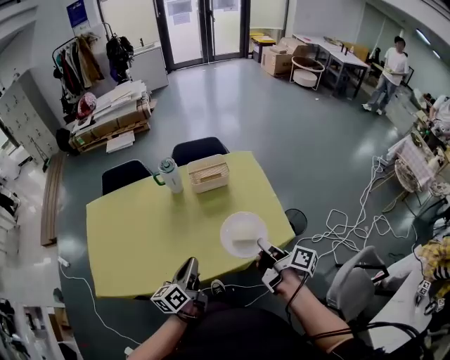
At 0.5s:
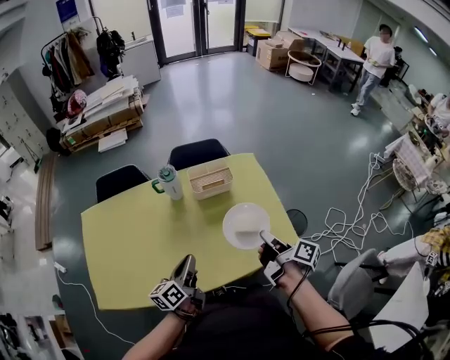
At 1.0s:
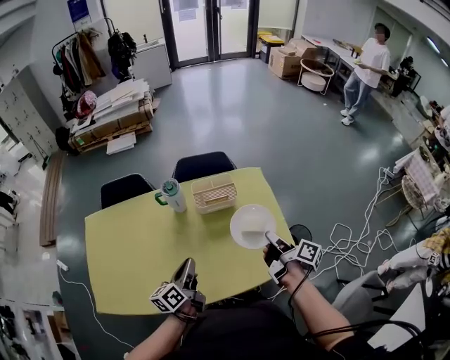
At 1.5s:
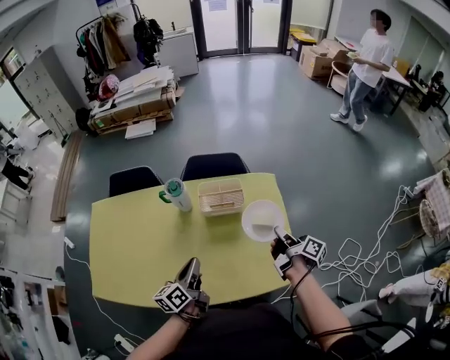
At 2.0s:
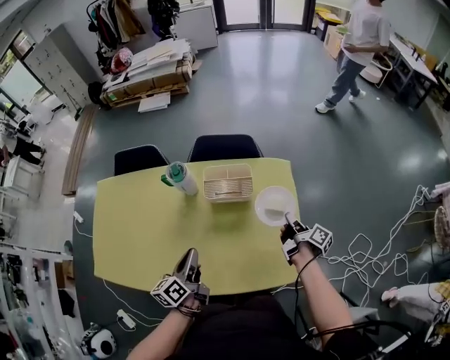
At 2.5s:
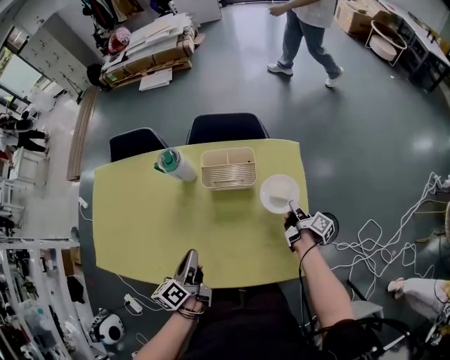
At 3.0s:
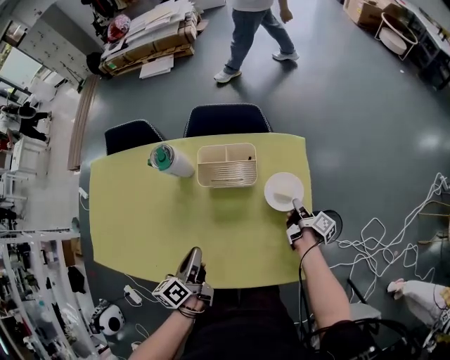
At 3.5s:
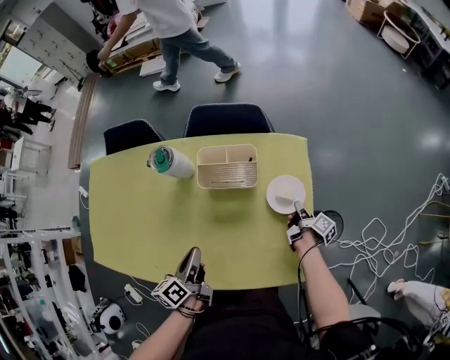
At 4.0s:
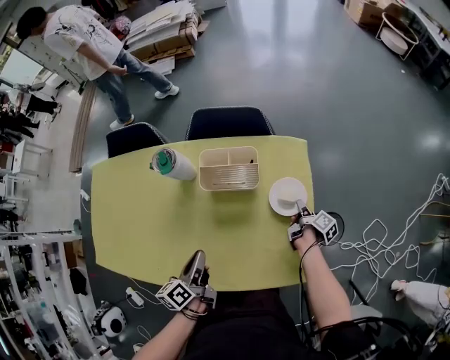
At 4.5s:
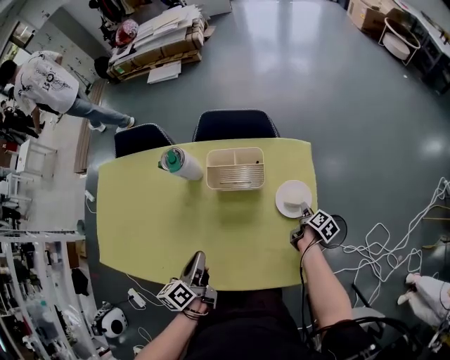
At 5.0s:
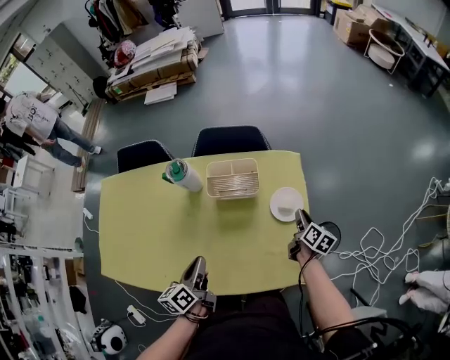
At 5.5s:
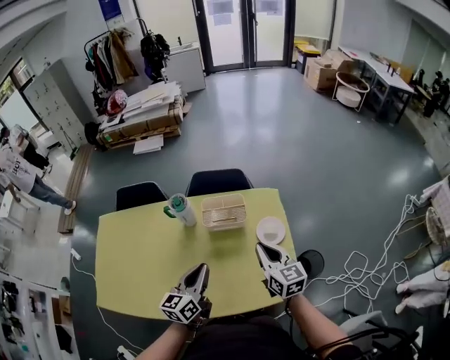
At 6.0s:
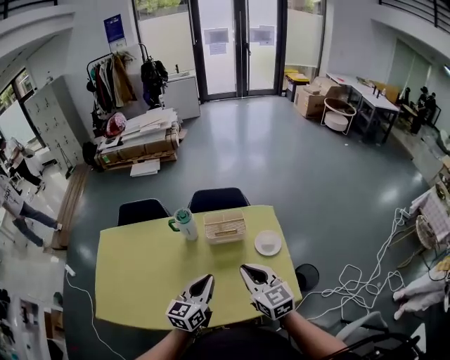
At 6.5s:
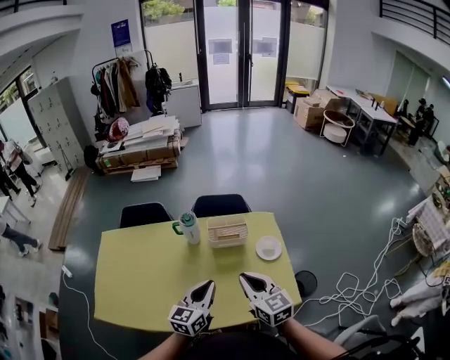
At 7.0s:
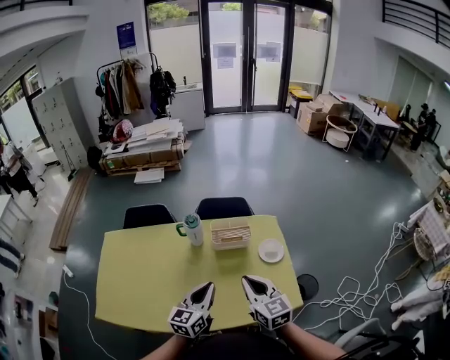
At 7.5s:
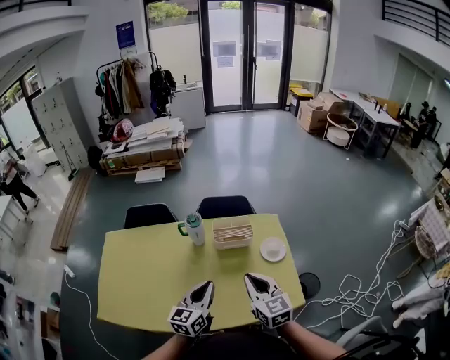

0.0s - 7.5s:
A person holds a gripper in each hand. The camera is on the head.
0.0s - 2.0s: The left gripper heads forward, covering about 20 cm, and swivels roughly 20 degrees. Meanwhile the right gripper travels forward, downward and to the right by about 40 cm.
2.0s - 4.0s: The left gripper is displaced downward by about 10 cm. The right gripper goes roughly 15 cm downward, and opens up.
4.0s - 5.5s: The right gripper shifts about 40 cm upward and to the left, rolls counterclockwise, seen from behind, by roughly 70 degrees, and closes its fingers; the left gripper heads upward, covering roughly 15 cm, and changes its angle by about 40 degrees.
5.5s - 7.5s: The left gripper goes some 10 cm backward and to the left. The right gripper travels backward, to the left and upward by about 20 cm.

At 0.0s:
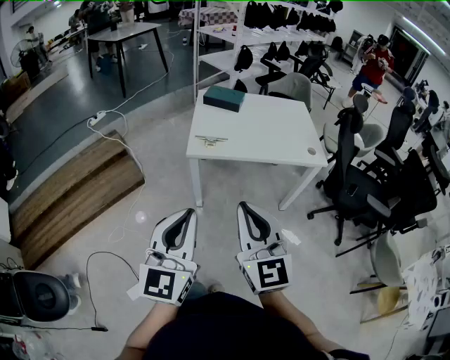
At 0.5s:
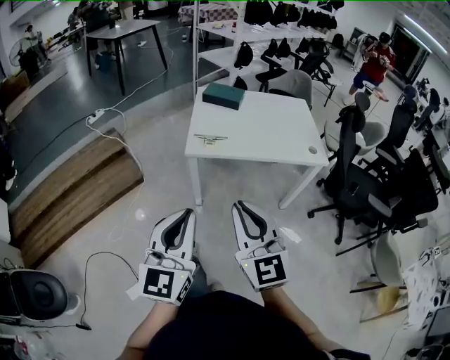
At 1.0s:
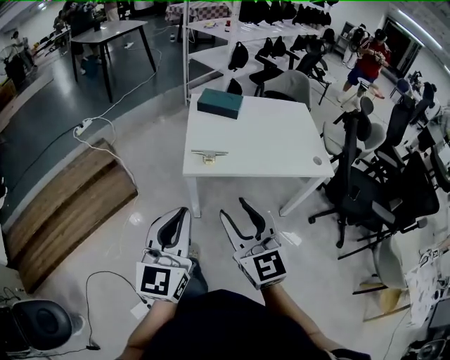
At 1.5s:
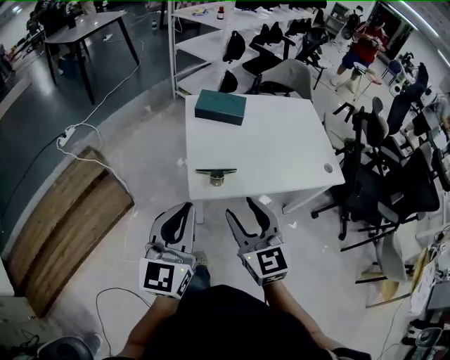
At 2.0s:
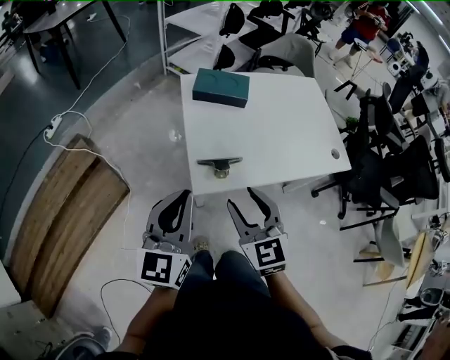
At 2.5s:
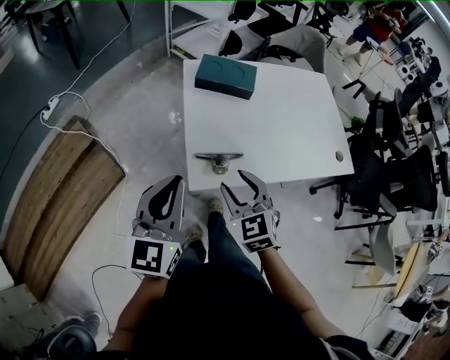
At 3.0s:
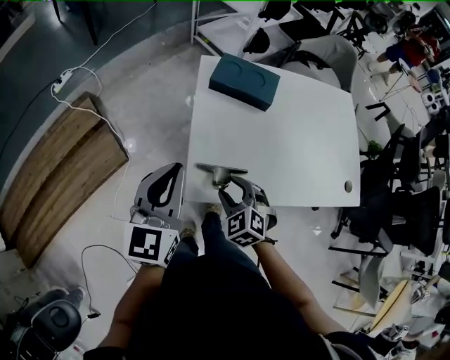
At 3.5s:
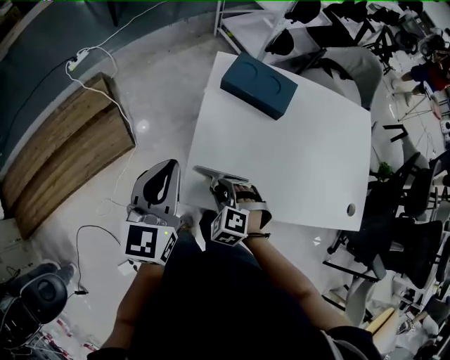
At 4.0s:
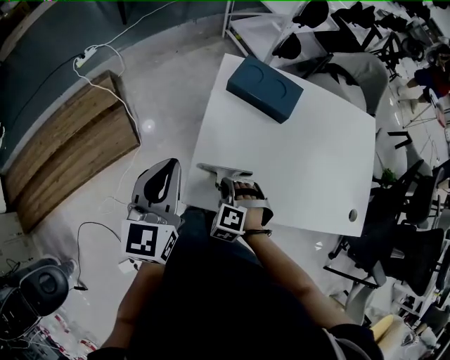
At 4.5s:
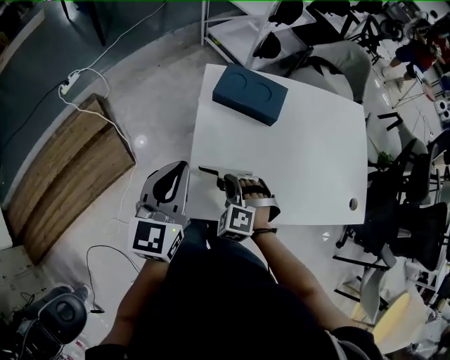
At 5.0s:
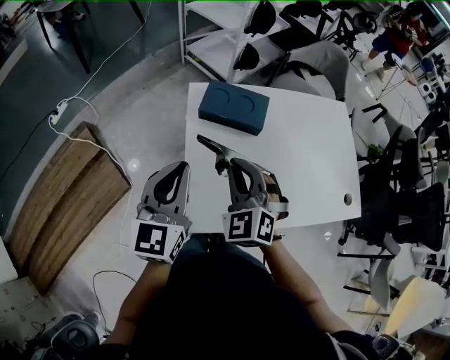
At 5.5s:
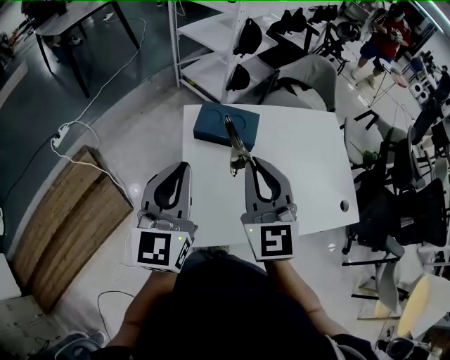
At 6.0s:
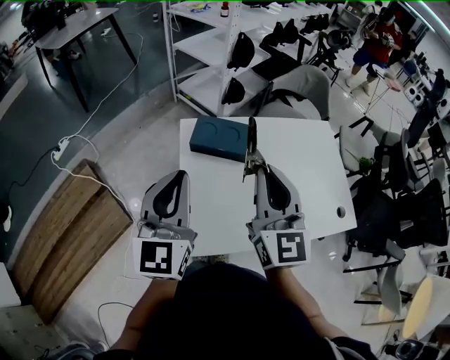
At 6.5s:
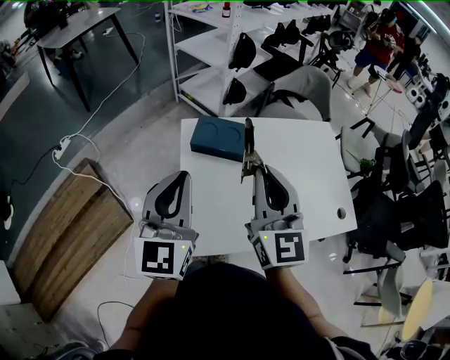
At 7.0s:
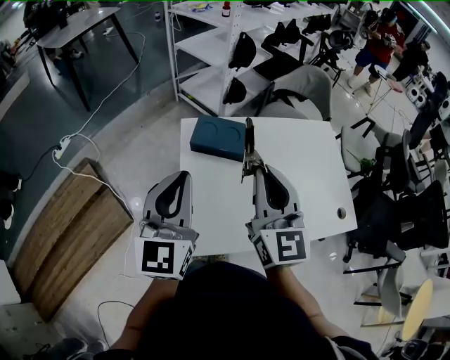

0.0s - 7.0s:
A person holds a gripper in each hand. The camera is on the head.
0.0s - 2.0s: The two grippers go about 40 cm forward. The right gripper swivels approximately 30 degrees, and opens.
2.0s - 3.5s: The left gripper heads forward, covering some 15 cm, and rotates approximately 20 degrees. Meanwhile the right gripper heads downward and forward, covering approximately 25 cm, and points its fingers about 40 degrees further downward.
3.5s - 5.0s: The left gripper is displaced forward by approximately 5 cm. Meanwhile the right gripper shifts about 25 cm upward and forward, angles its fingers upward, by roughly 30 degrees, and closes.
5.0s - 7.0s: The left gripper travels upward by some 10 cm. The right gripper moves upward and to the right, approximately 15 cm, and rolls clockwise, seen from behind, by roughly 40 degrees.

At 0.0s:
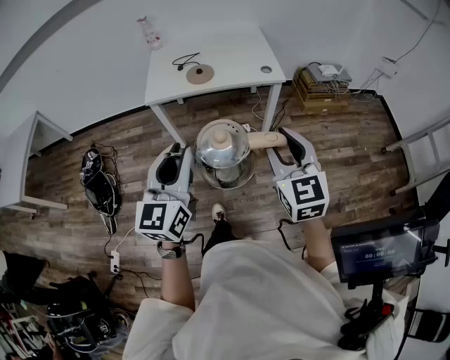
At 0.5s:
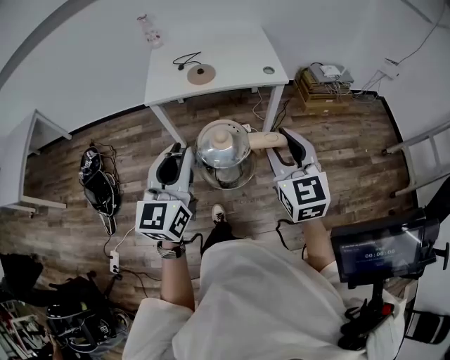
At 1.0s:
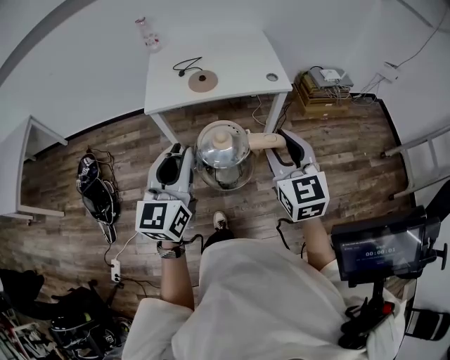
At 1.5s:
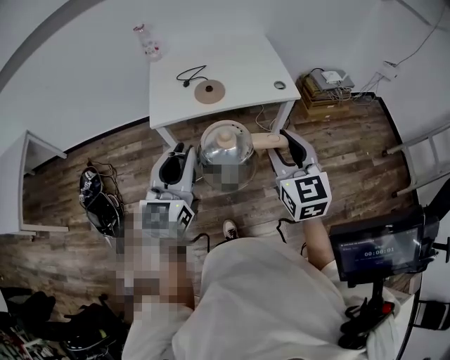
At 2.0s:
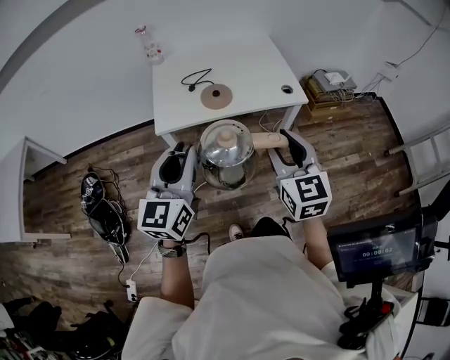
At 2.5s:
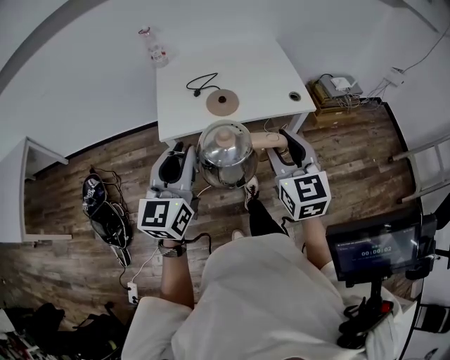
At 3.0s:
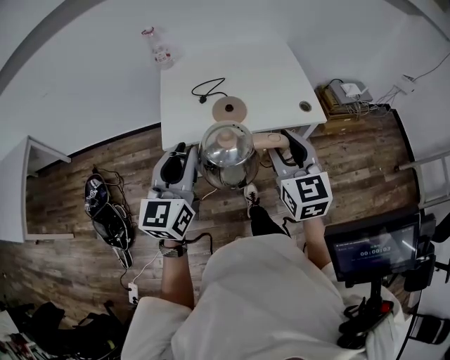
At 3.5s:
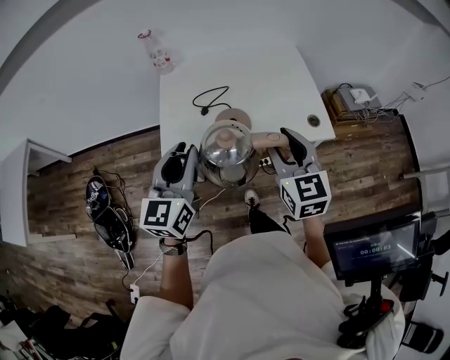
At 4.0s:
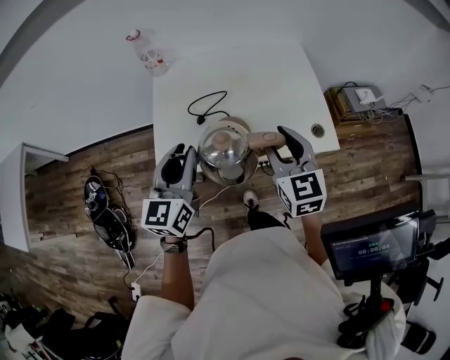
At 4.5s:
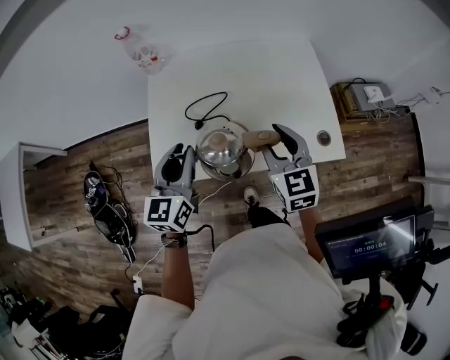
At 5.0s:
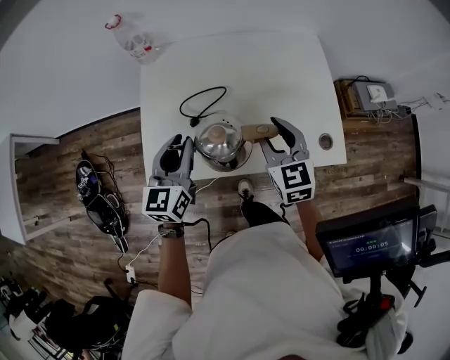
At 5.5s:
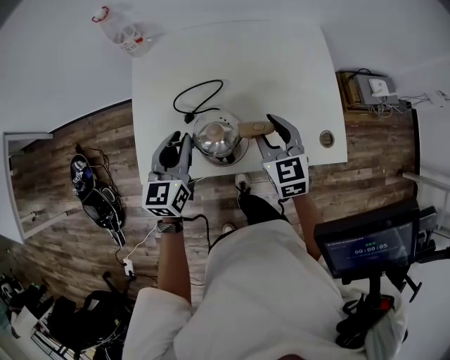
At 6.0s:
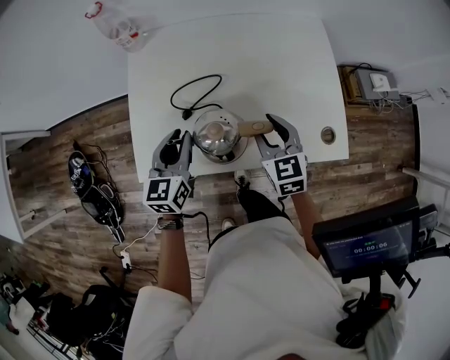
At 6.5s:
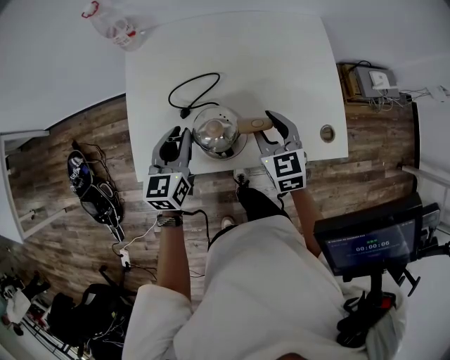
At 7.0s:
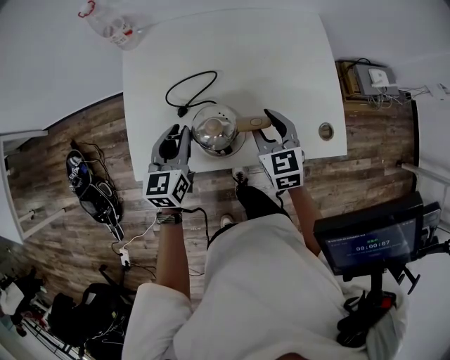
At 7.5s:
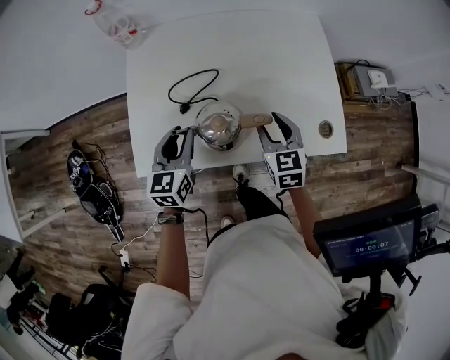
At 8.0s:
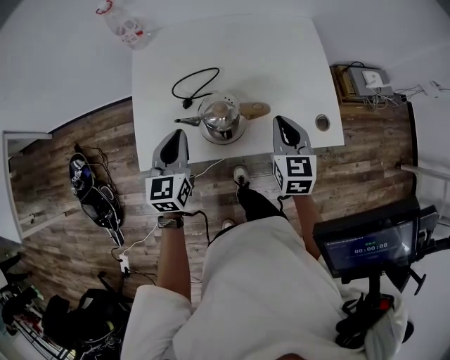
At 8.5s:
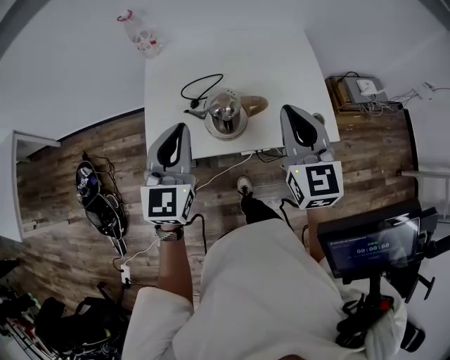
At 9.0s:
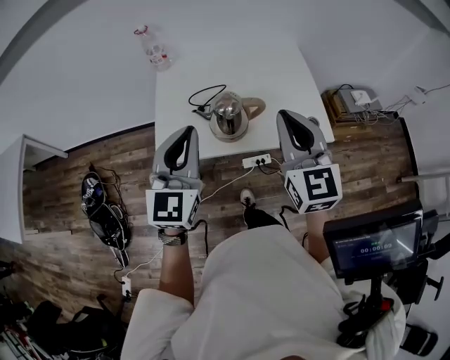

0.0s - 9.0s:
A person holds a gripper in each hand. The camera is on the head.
0.0s - 2.0s: Both grippers move forward and to the left, some 25 cm.
2.0s - 4.5s: Both grippers travel together forward, roughly 40 cm.
4.5s - 7.0s: The grippers both shift downward and forward by roughly 15 cm.
7.0s - 9.0s: The grippers both shift upward and backward by some 35 cm. The right gripper turns by about 30 degrees, and closes; the left gripper rotates roughly 30 degrees.

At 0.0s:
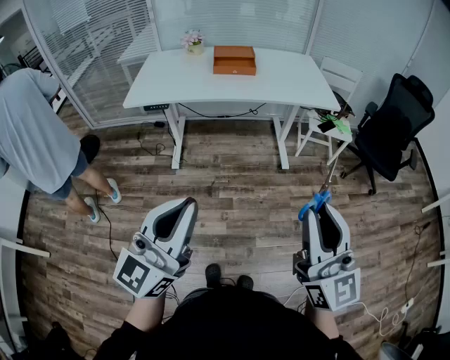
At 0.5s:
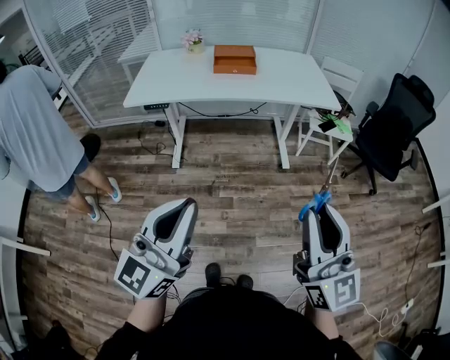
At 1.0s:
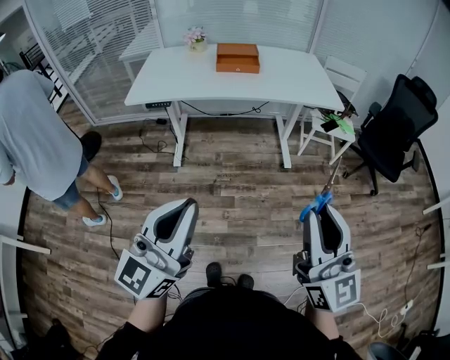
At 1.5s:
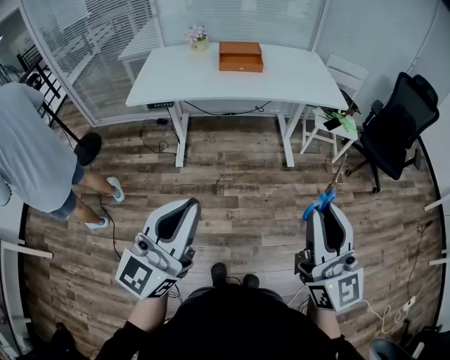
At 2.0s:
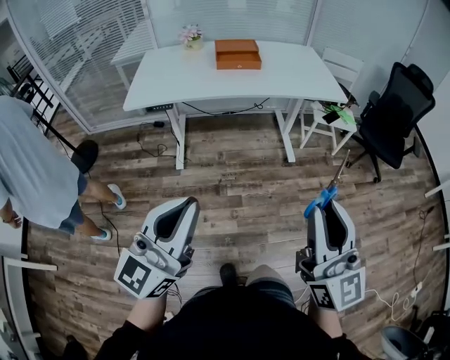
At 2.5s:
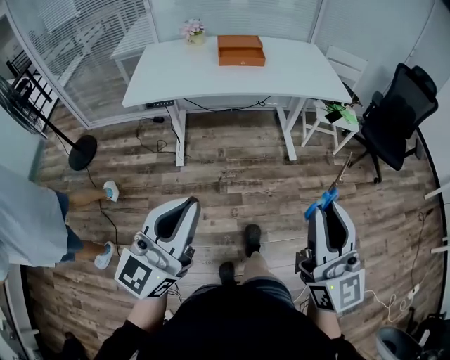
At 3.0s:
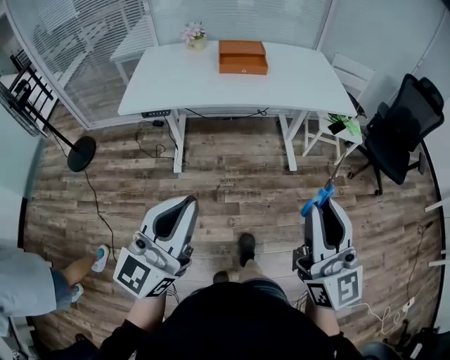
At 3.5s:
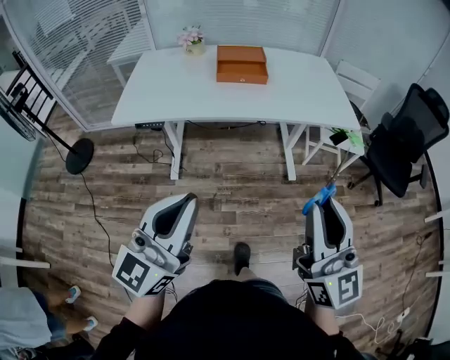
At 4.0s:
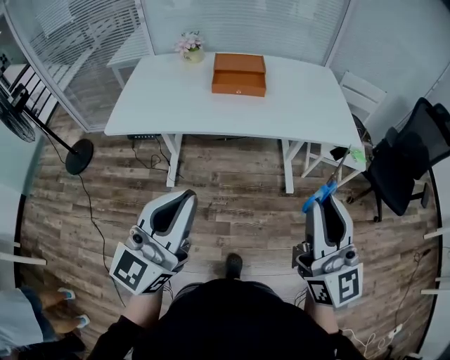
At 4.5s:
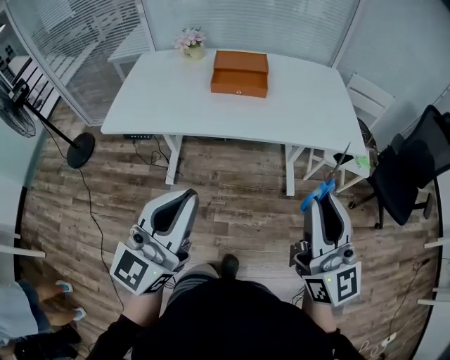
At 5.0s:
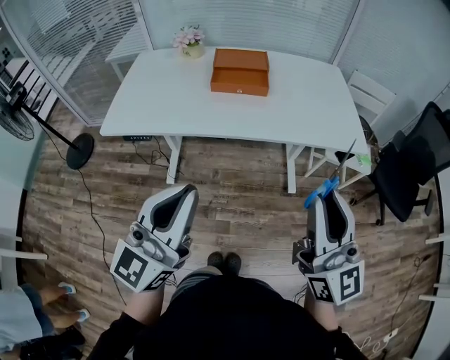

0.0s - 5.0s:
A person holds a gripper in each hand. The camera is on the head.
0.0s - 2.5s: Both grippers travel together to the left, some 10 cm.
2.5s - 5.0s: The two grippers go roughly 30 cm forward.
